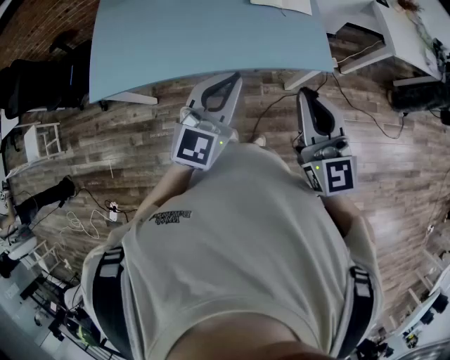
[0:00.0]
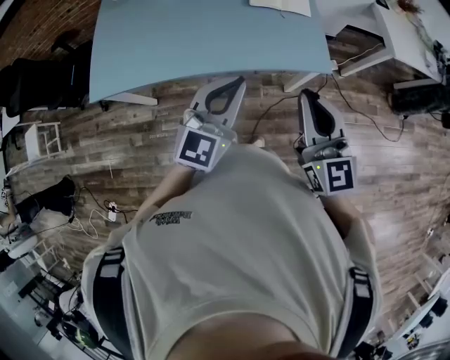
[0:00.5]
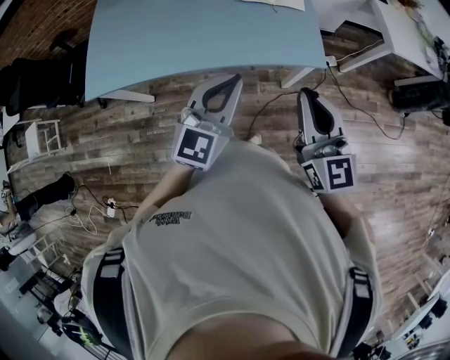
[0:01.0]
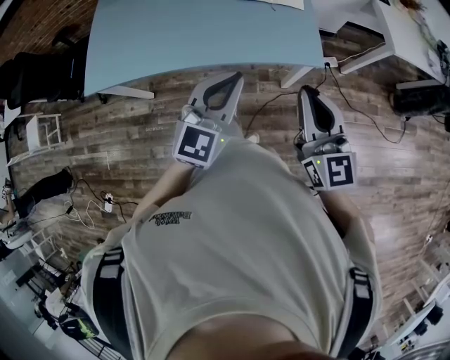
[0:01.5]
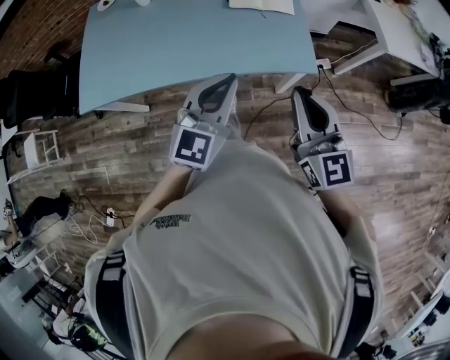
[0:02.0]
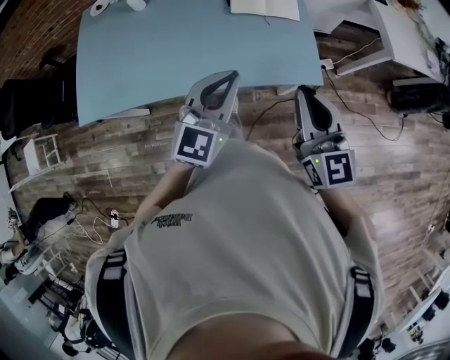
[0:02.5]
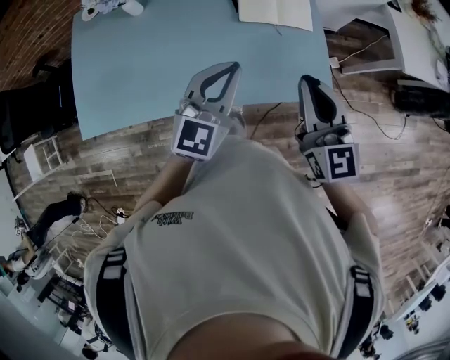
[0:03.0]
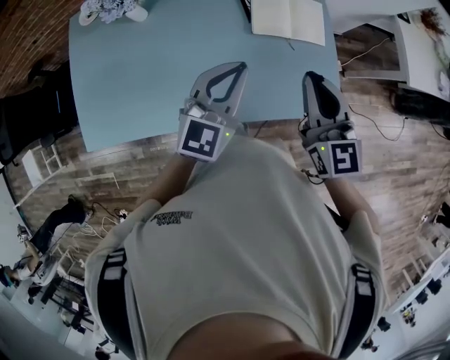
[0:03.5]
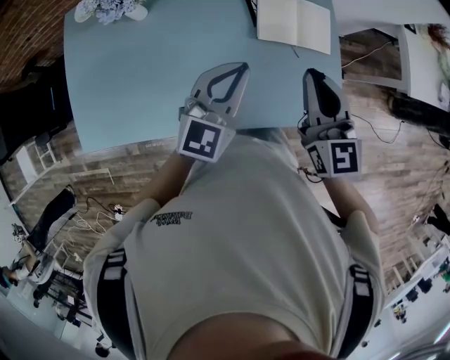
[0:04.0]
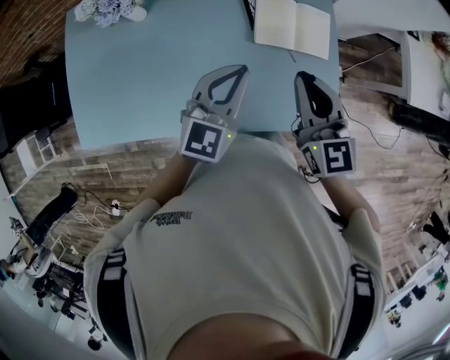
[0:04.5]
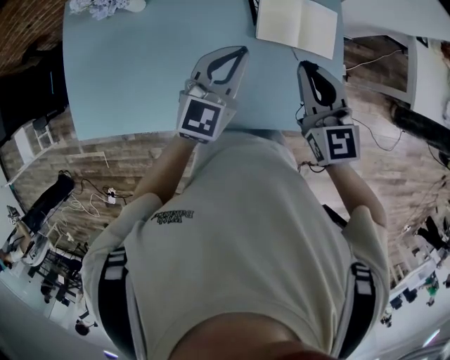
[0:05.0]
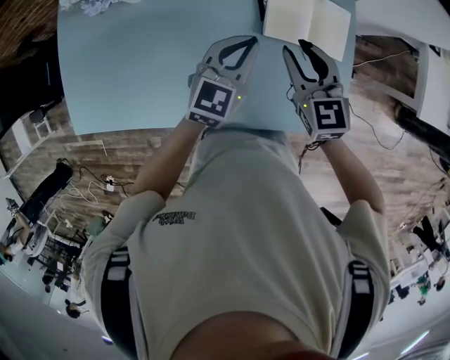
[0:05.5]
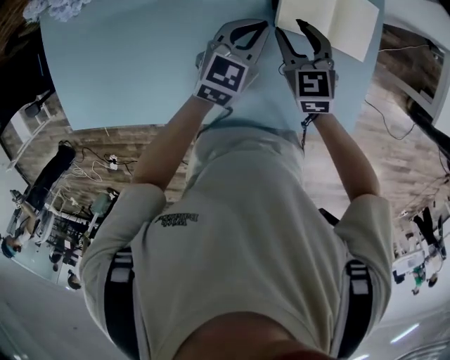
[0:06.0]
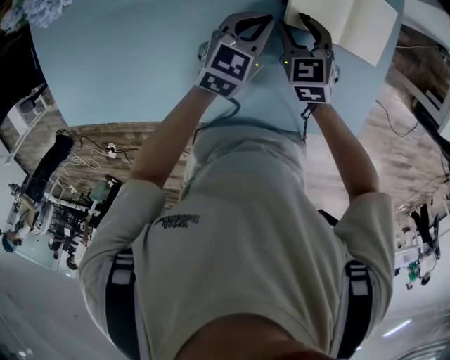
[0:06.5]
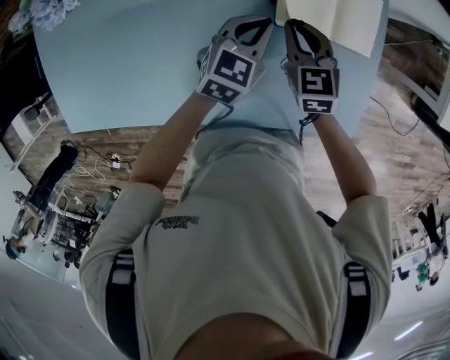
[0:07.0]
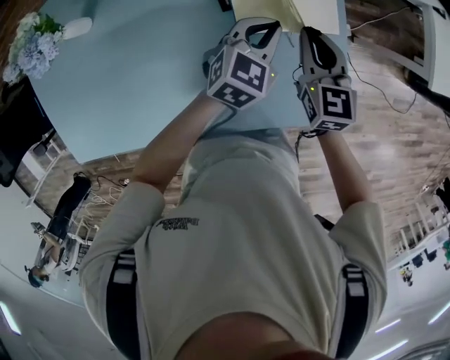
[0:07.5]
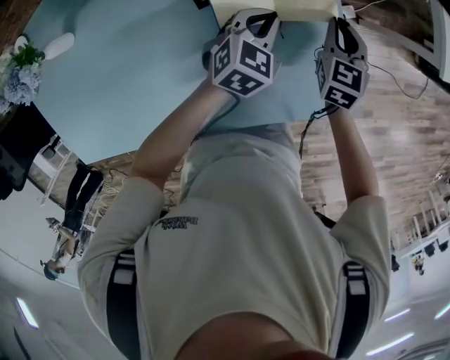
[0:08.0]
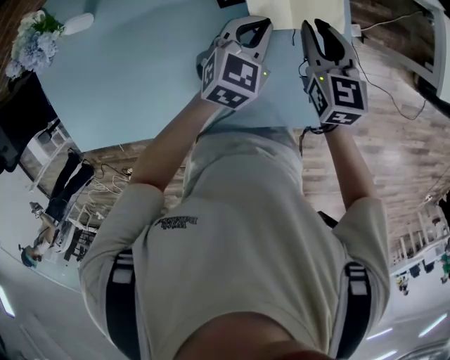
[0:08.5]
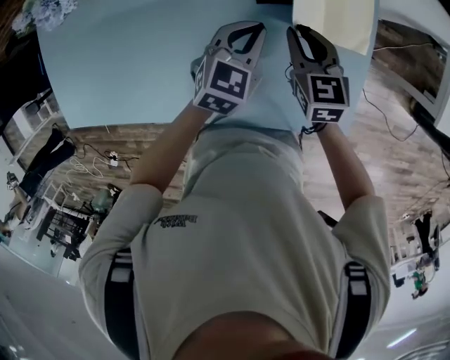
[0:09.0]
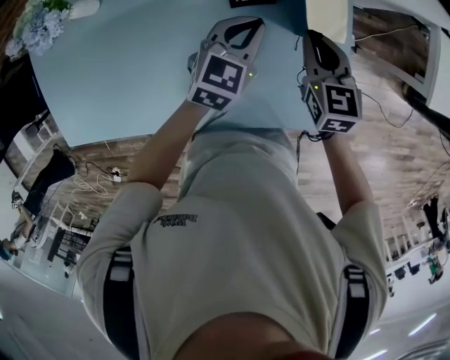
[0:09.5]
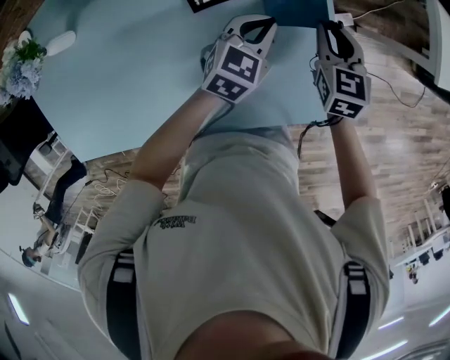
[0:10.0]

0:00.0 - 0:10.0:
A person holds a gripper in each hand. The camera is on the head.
0:00.0 - 0:02.0: The grippers both shift to the right by approximately 5 cm.
0:02.0 - 0:04.0: The two grippers go some 30 cm forward.
0:04.0 - 0:06.0: The grippers both shift downward and forward by about 25 cm. The left gripper swivels roughly 20 degrees; the right gripper rotates some 30 degrees, and opens.
0:06.0 - 0:08.0: The left gripper swings up and down, about 5 cm each way, with 2 reversals, and swivels approximately 20 degrees; the right gripper moves up and down over approximately 10 cm, changing direction 2 times, swivels some 40 degrees, and closes up.

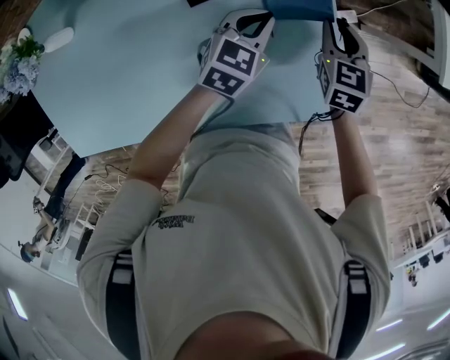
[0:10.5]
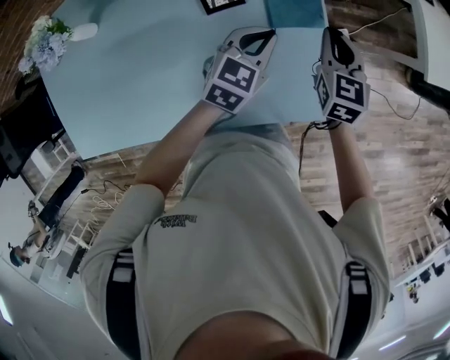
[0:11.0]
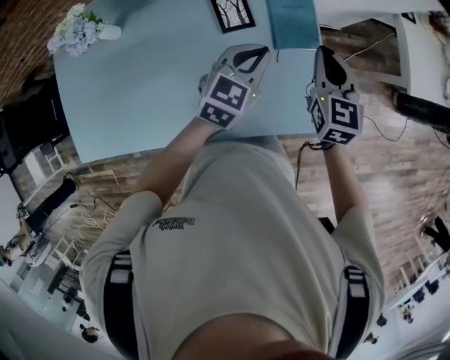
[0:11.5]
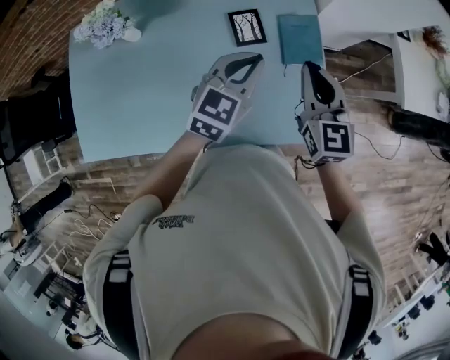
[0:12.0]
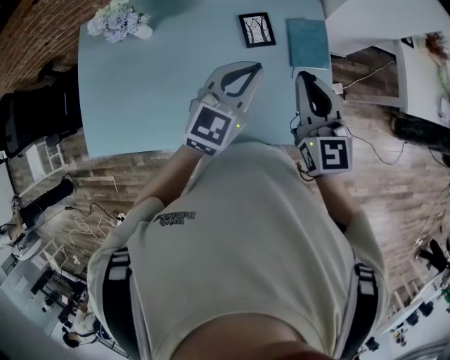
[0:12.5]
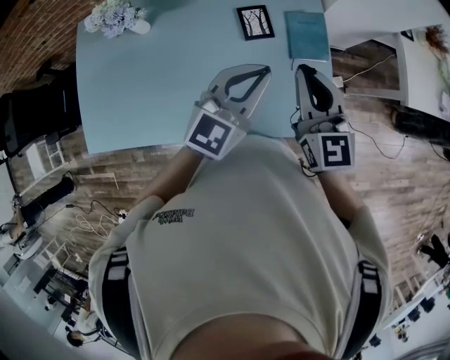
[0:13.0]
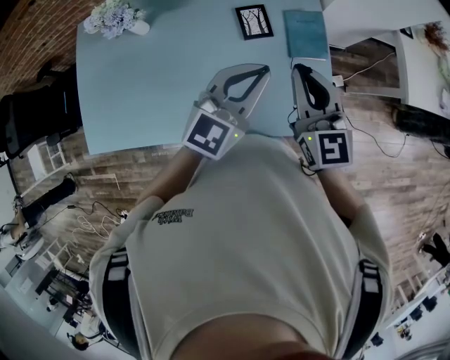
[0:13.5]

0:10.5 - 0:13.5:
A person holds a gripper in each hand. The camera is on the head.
0:10.5 - 0:12.0: The right gripper is displaced upward, to the left and backward by some 30 cm, and swivels approximately 30 degrees. The left gripper heads upward, backward and to the left, covering some 25 cm, and changes its angle by approximately 20 degrees.
0:12.0 - 0:13.5: The left gripper is displaced backward and upward by roughly 10 cm. The right gripper shifts approximately 5 cm backward.

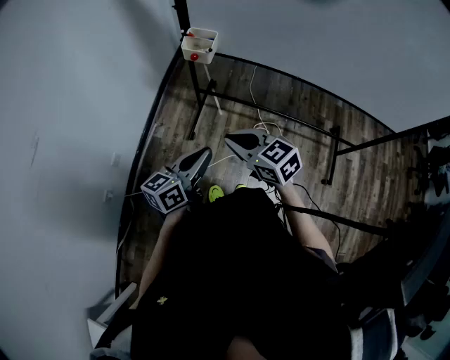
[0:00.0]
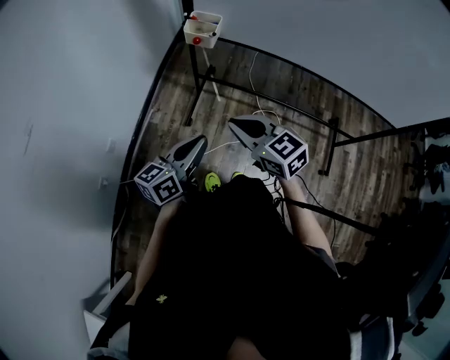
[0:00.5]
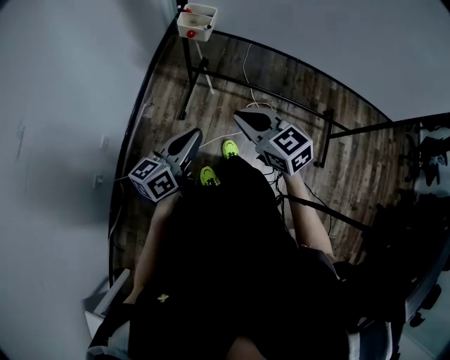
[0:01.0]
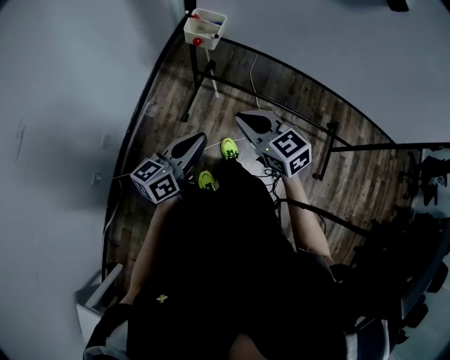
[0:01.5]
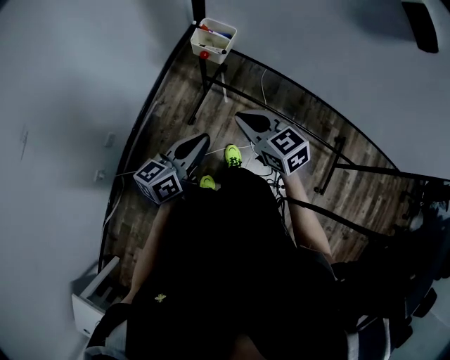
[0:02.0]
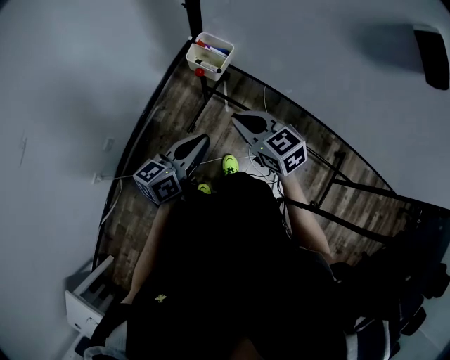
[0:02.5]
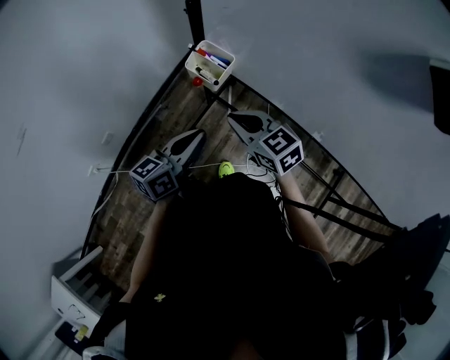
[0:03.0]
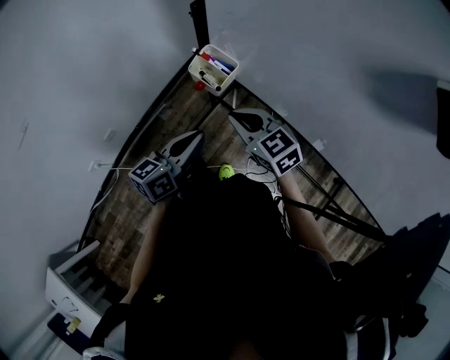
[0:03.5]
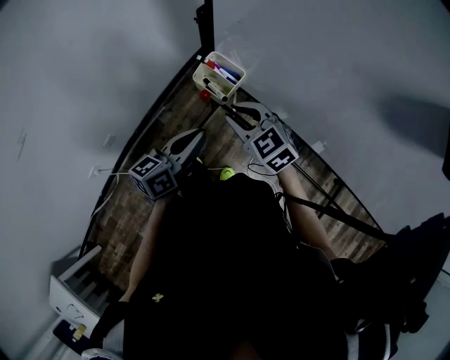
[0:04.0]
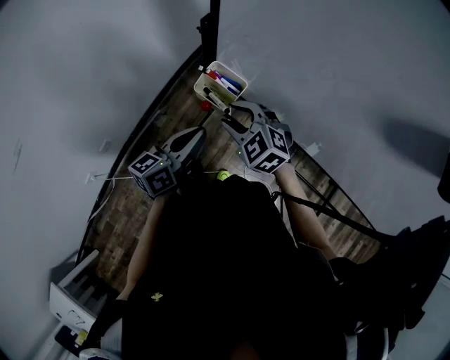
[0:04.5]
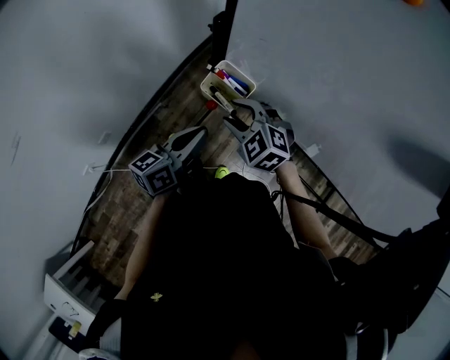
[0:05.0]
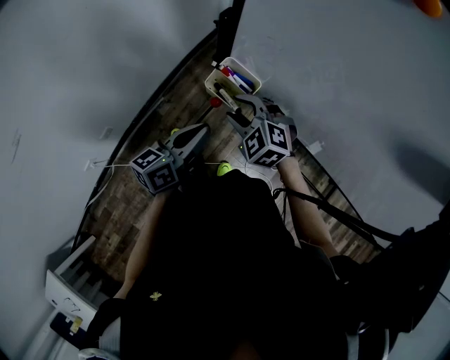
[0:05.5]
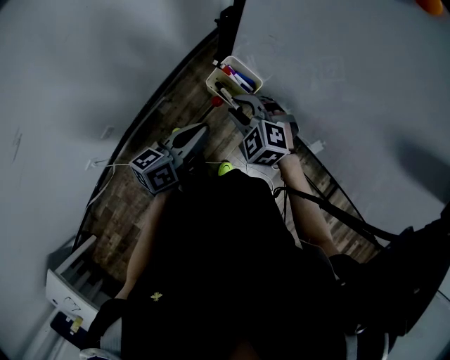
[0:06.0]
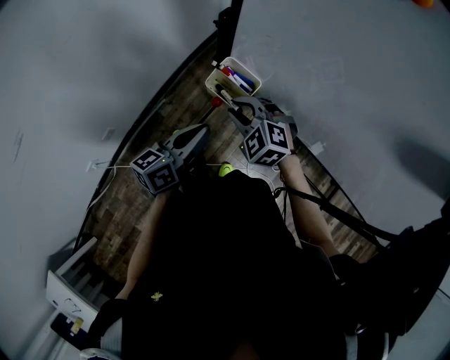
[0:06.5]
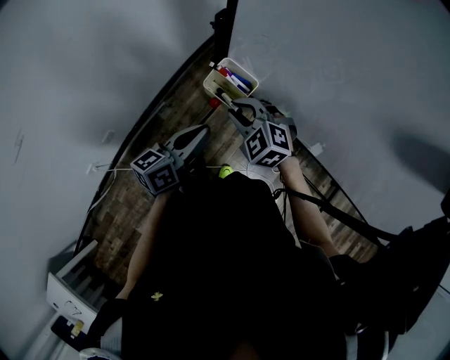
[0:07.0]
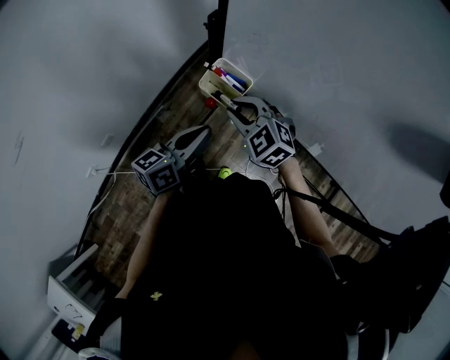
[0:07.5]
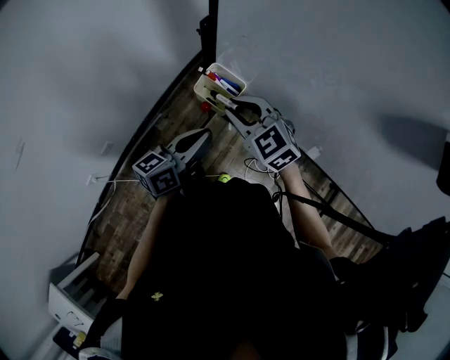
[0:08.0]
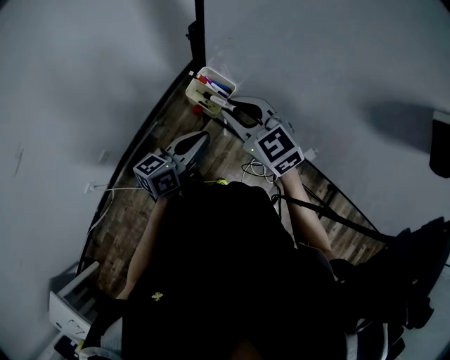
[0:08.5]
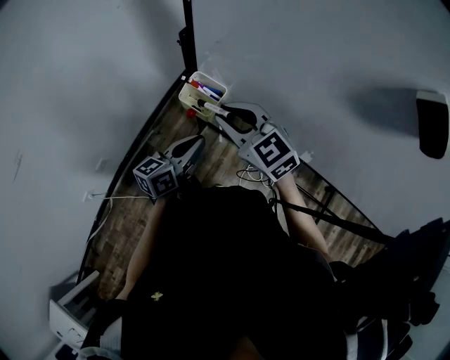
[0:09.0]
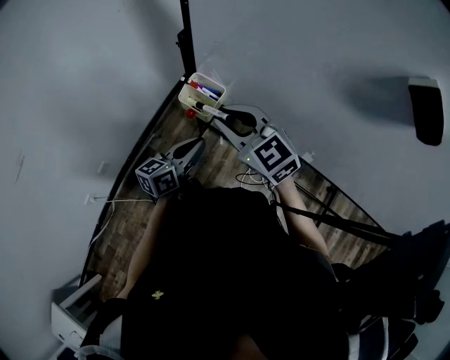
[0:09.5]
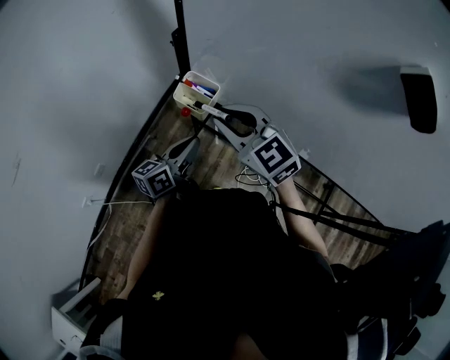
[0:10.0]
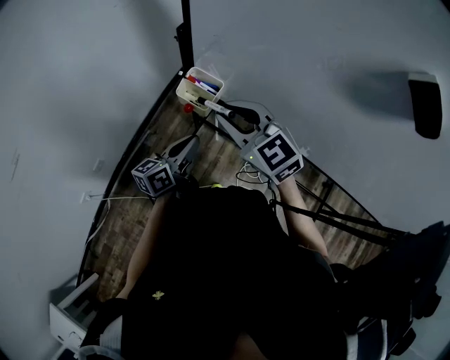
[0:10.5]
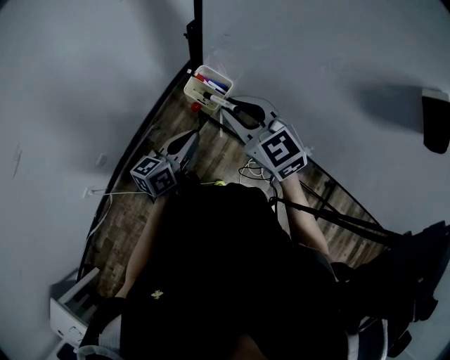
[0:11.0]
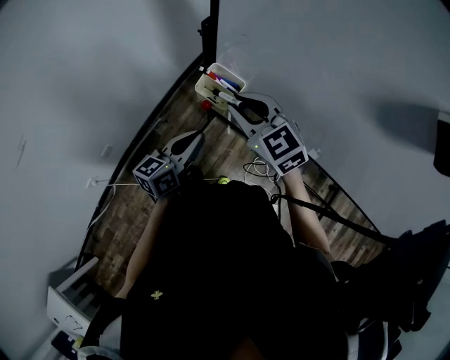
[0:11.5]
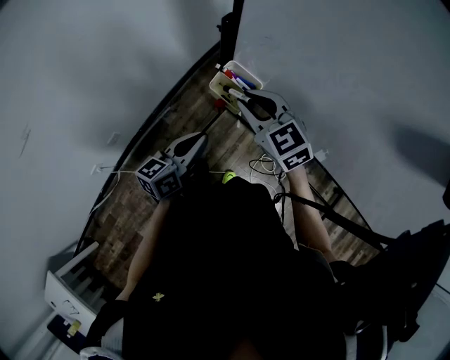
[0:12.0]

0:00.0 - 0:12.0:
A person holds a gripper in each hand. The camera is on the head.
0:00.0 - 0:02.0: Both grippers move forward, some 15 cm.
0:02.0 - 0:04.0: The two grippers go approximately 15 cm forward. The right gripper changes its angle by roughly 20 degrees.
0:04.0 - 0:06.0: The left gripper moves some 5 cm; the right gripper shifts by about 10 cm, and swivels some 30 degrees.
0:06.0 - 0:08.0: The right gripper goes roughly 10 cm upward, and swivels some 30 degrees.
0:08.0 - 0:10.0: The right gripper is displaced upward and backward by about 10 cm.
0:10.0 - 0:12.0: The left gripper moves to the left, roughly 5 cm. The right gripper shifts some 10 cm forward and downward.

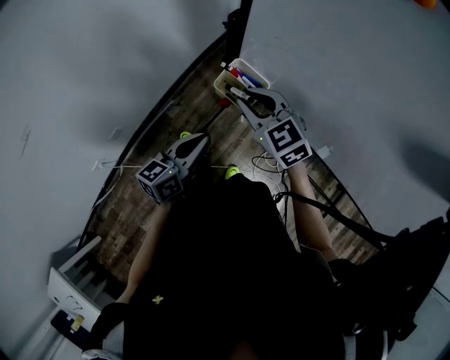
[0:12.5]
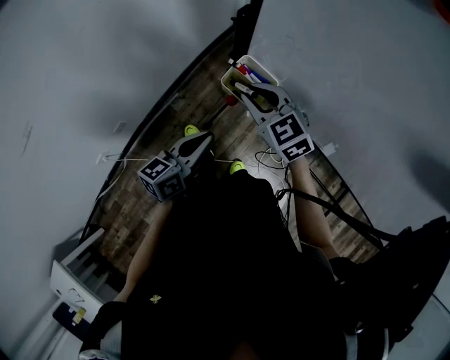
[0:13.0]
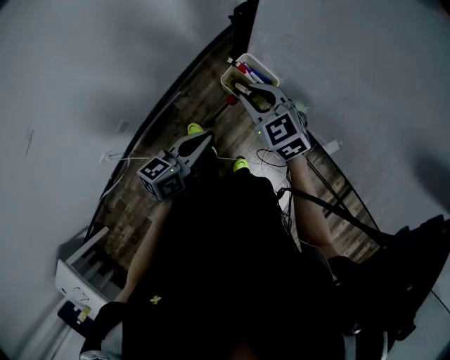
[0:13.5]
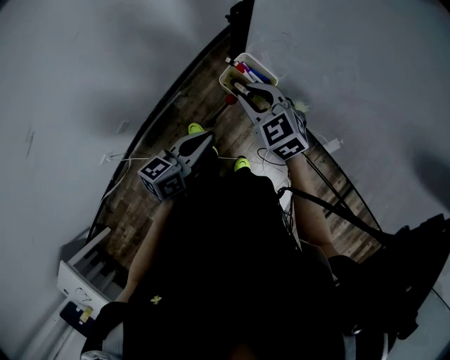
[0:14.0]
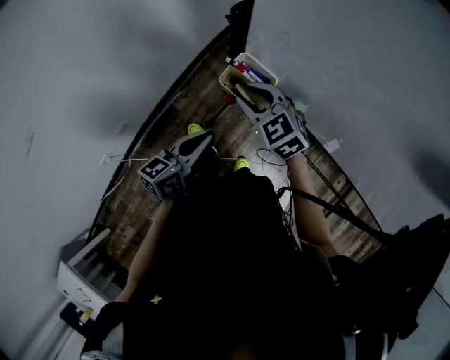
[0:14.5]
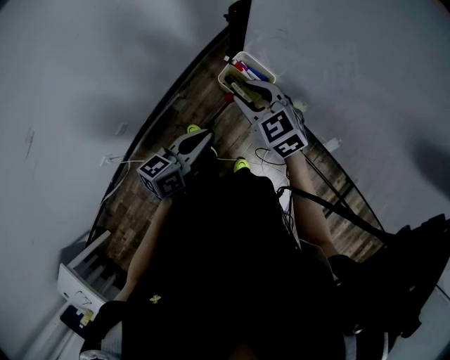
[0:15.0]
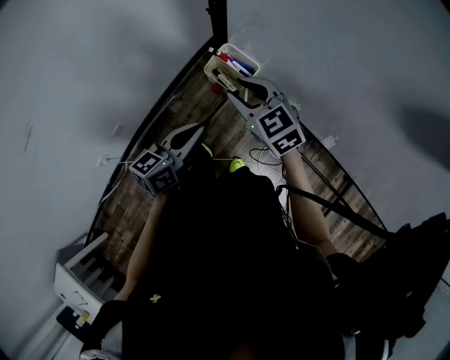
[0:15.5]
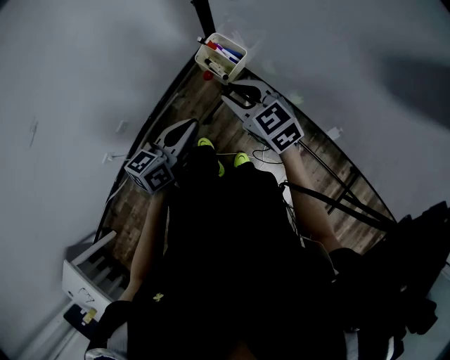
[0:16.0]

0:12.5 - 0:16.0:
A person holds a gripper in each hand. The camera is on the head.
0:12.5 - 0:14.5: The grippers make only small movements.
0:14.5 - 0:16.0: The left gripper changes place by some 5 cm. The right gripper shifts approximately 10 cm backward.
